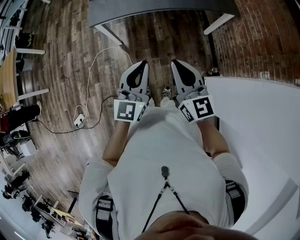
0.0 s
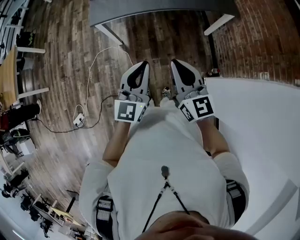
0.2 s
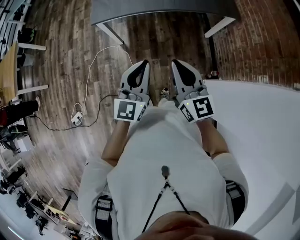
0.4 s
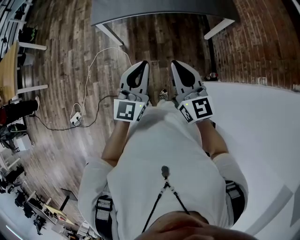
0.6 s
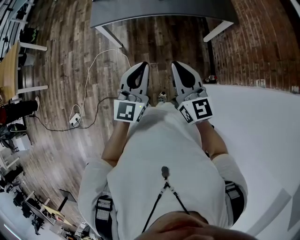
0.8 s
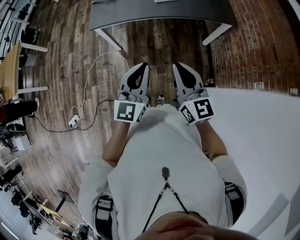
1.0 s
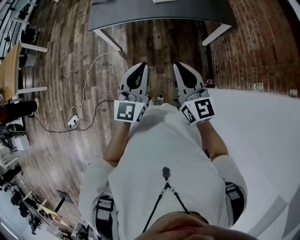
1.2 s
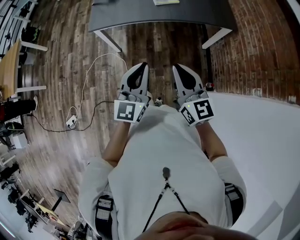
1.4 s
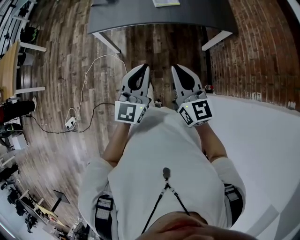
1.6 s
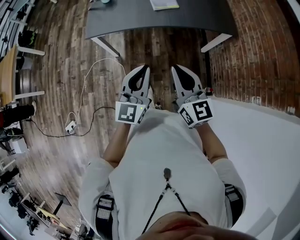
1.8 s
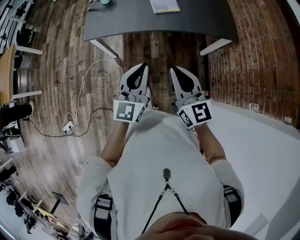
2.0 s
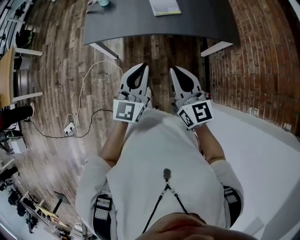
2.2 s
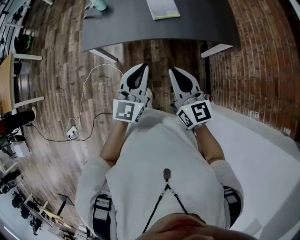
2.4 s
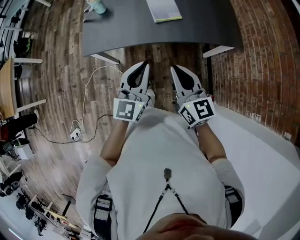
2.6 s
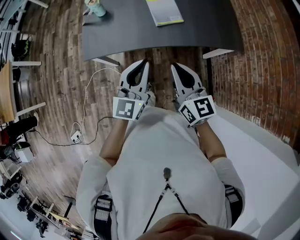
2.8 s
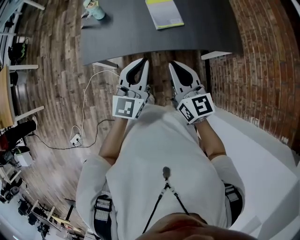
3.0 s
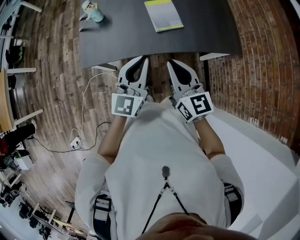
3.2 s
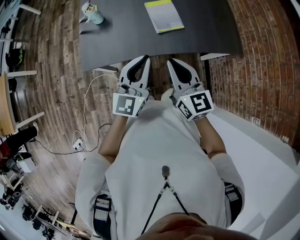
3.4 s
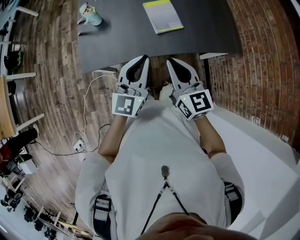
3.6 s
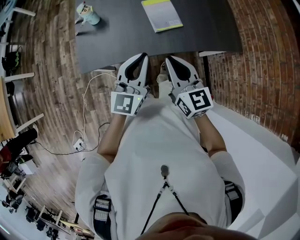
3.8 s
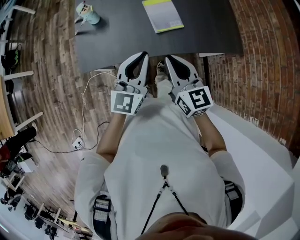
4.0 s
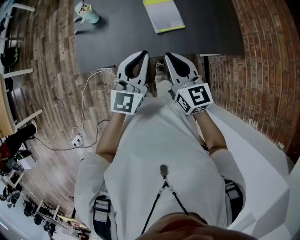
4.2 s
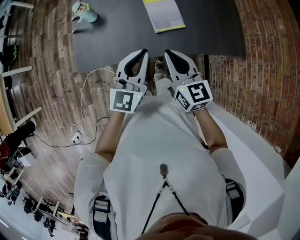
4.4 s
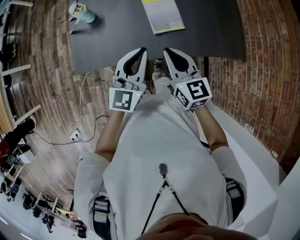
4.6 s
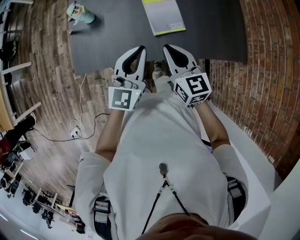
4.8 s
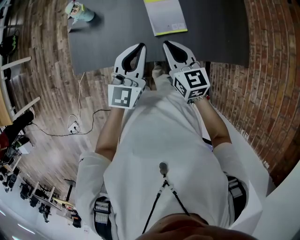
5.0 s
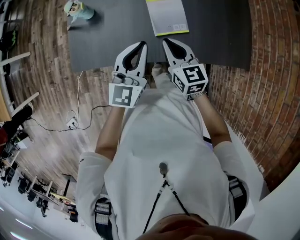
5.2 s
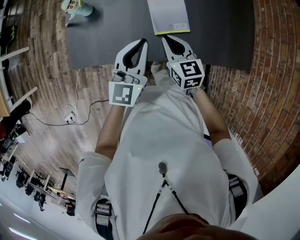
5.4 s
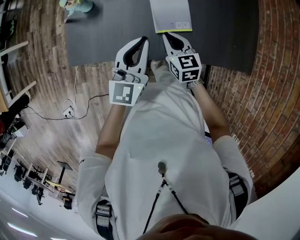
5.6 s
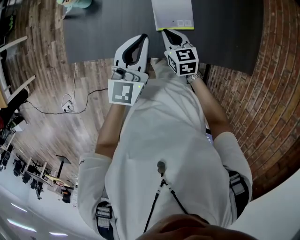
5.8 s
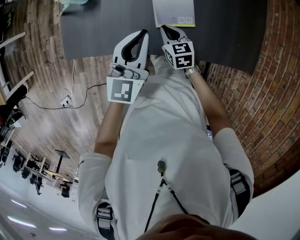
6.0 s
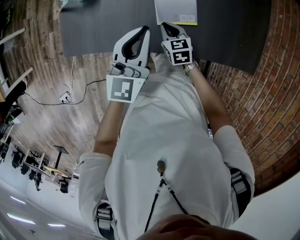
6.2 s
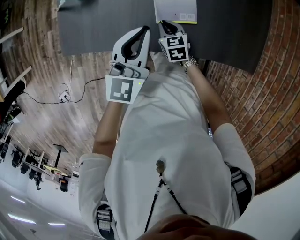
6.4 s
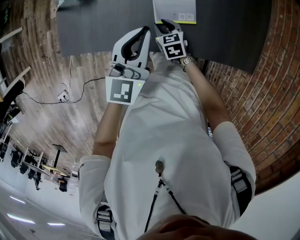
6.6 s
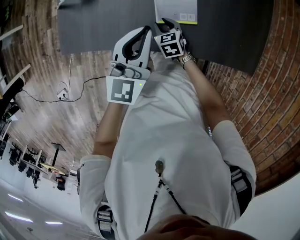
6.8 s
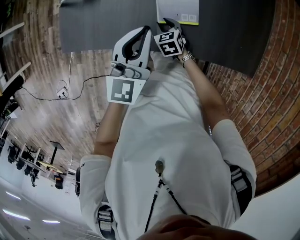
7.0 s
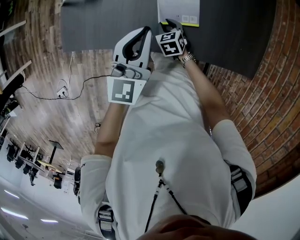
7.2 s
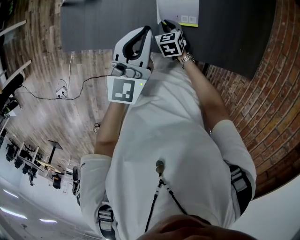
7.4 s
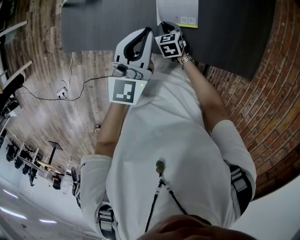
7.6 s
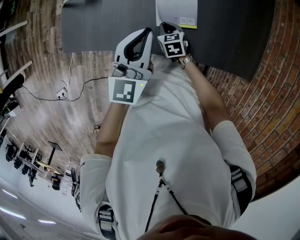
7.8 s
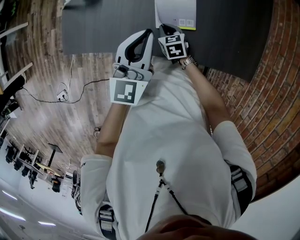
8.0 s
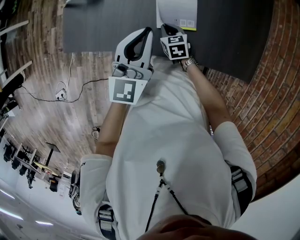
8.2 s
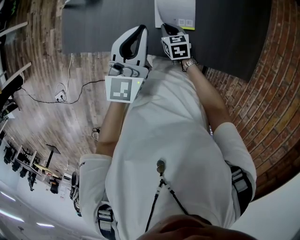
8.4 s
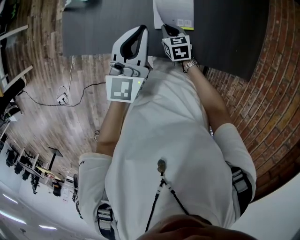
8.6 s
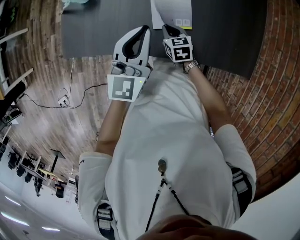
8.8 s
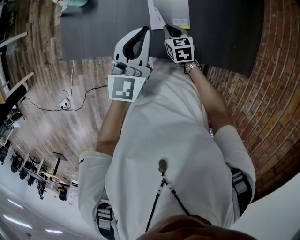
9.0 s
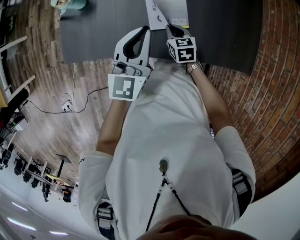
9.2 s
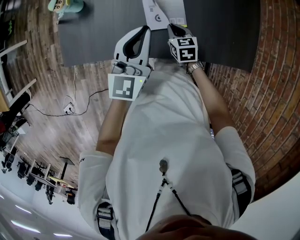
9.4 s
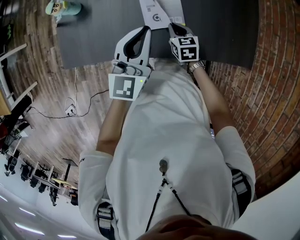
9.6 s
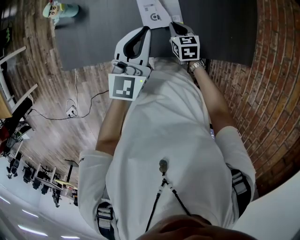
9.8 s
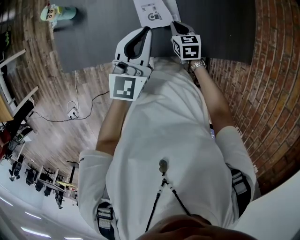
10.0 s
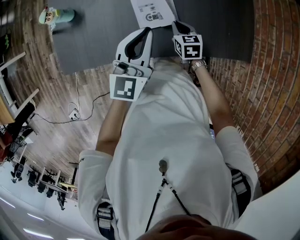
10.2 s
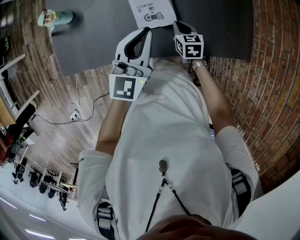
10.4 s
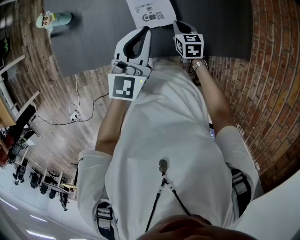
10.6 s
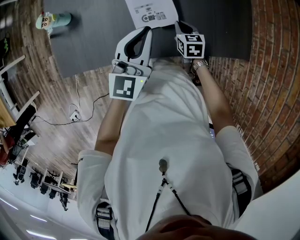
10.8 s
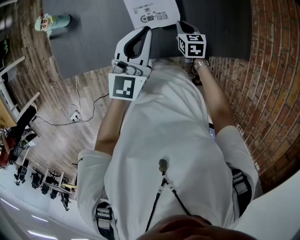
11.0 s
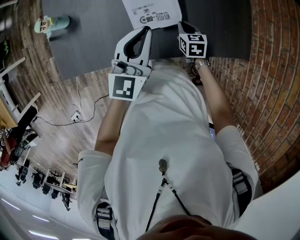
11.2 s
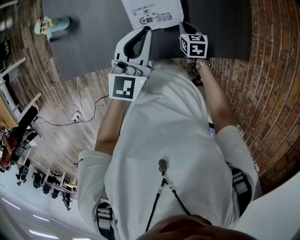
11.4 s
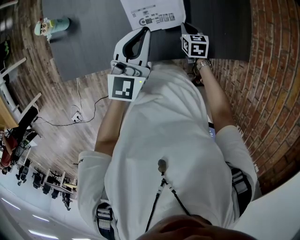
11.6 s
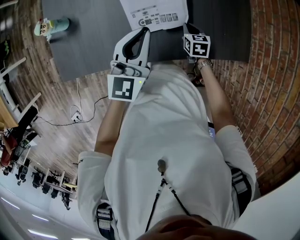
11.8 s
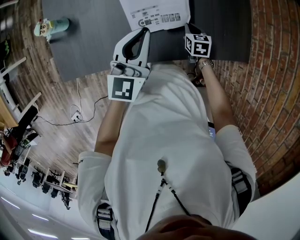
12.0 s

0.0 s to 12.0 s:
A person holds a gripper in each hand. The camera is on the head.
0.0 to 1.6 s: The right gripper heads to the right and forward, covering approximately 10 cm. Meanwhile the left gripper moves to the right, about 10 cm.
1.6 to 3.0 s: The two grippers go approximately 35 cm forward.
3.0 to 4.4 s: The two grippers go about 15 cm forward.
4.4 to 6.0 s: The right gripper heads downward and forward, covering some 35 cm, and turns by some 30 degrees; the left gripper is displaced forward and downward by roughly 20 cm.
6.0 to 7.6 s: The right gripper heads downward, covering some 10 cm, and opens and closes again.
7.6 to 9.0 s: The right gripper heads upward, covering approximately 5 cm.
9.0 to 10.4 s: The right gripper is displaced to the right by about 10 cm. Meanwhile the left gripper goes roughly 5 cm to the right.
10.4 to 12.0 s: The right gripper heads to the right, covering roughly 10 cm.

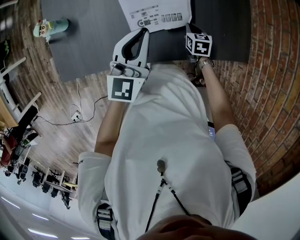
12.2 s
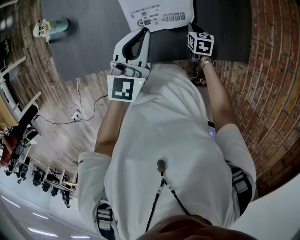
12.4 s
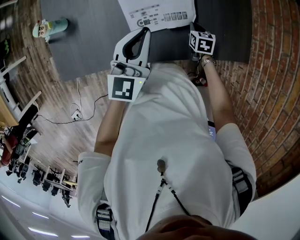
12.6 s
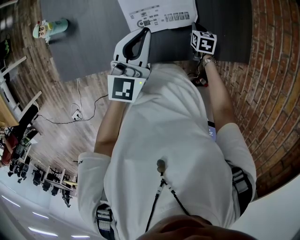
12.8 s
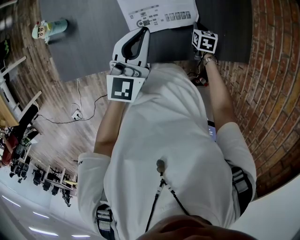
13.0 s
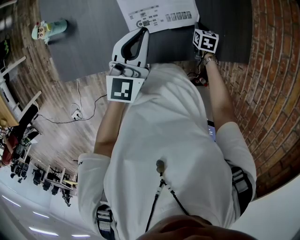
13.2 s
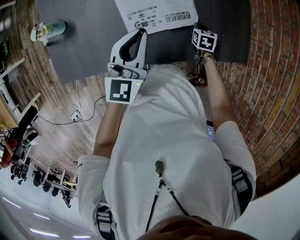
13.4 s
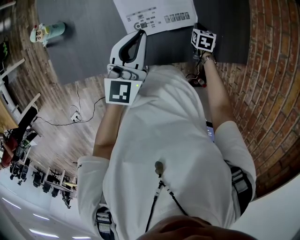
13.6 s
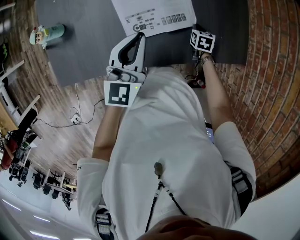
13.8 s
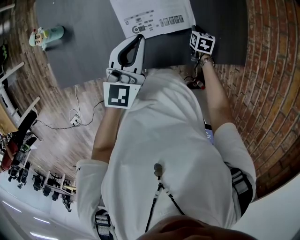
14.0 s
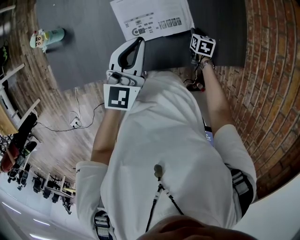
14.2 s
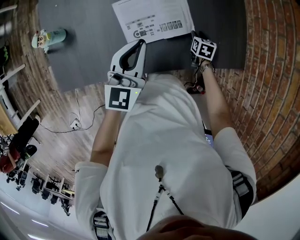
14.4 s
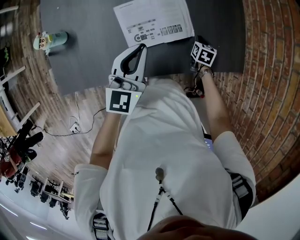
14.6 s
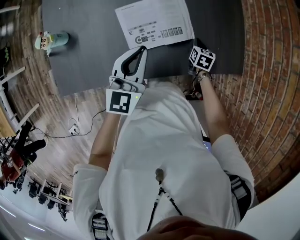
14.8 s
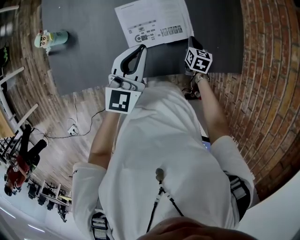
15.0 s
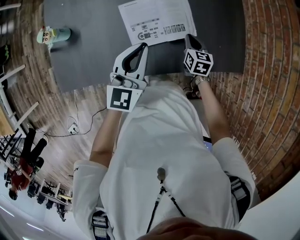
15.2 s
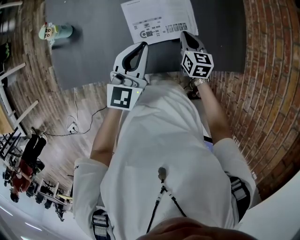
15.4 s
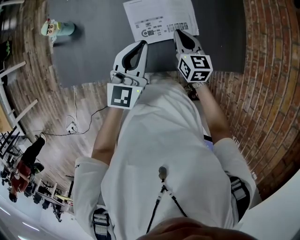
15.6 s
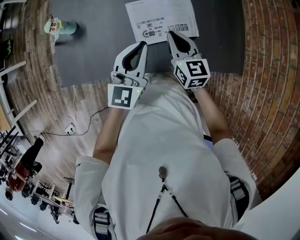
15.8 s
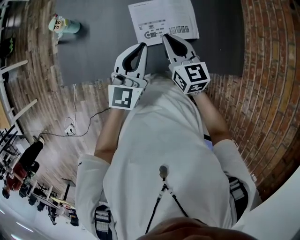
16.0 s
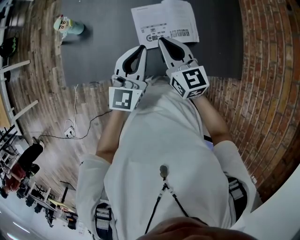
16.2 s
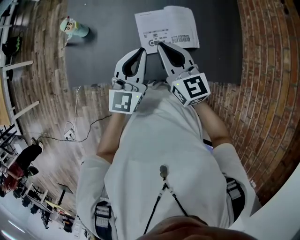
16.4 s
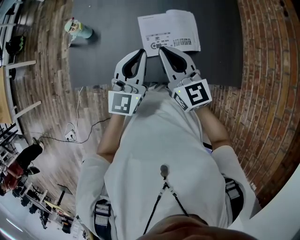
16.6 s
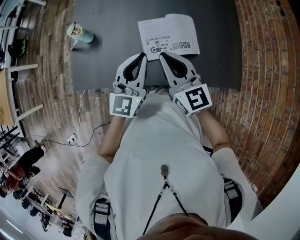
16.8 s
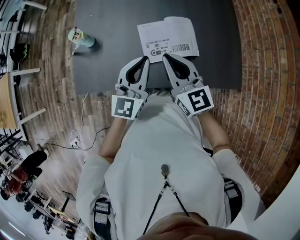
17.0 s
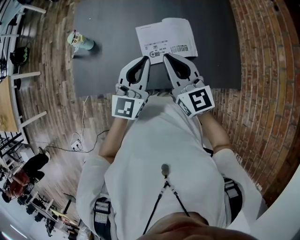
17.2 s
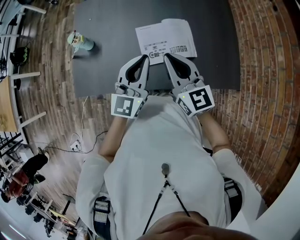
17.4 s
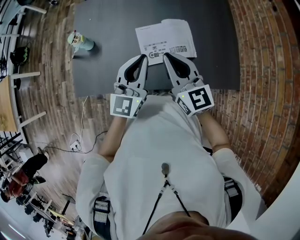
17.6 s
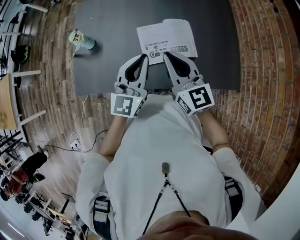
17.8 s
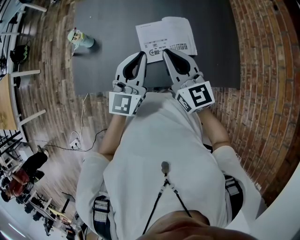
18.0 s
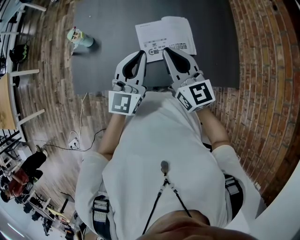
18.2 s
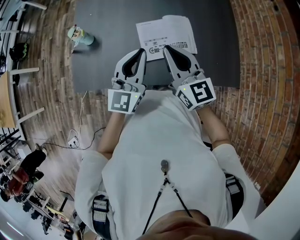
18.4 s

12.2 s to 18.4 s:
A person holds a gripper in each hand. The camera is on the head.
12.2 to 13.8 s: The right gripper moves to the right, roughly 5 cm.
13.8 to 15.4 s: The right gripper moves upward and to the left, about 20 cm, turns by about 30 degrees, and opens, then closes once more.
15.4 to 16.8 s: The right gripper moves upward and to the left, some 30 cm, and changes its angle by about 40 degrees. Meanwhile the left gripper moves upward, roughly 10 cm.
16.8 to 18.4 s: The grippers stay close to where they were, moving slightly.

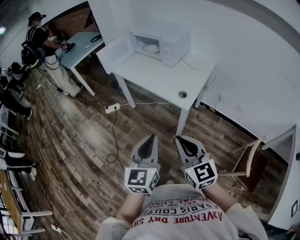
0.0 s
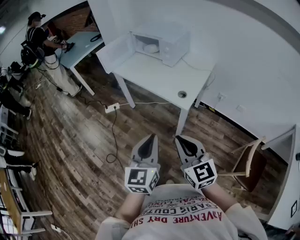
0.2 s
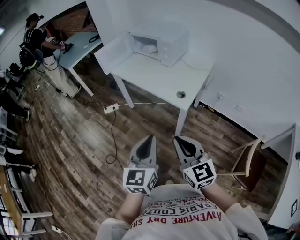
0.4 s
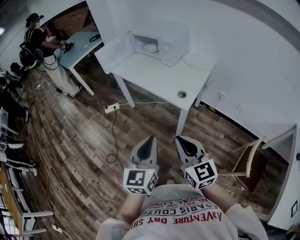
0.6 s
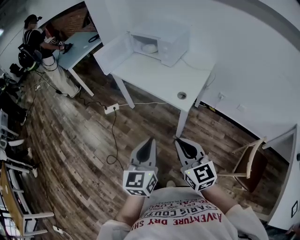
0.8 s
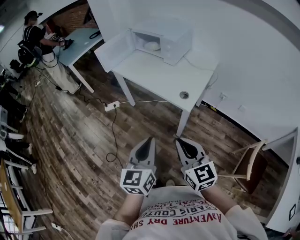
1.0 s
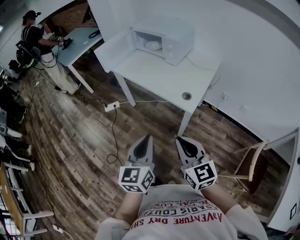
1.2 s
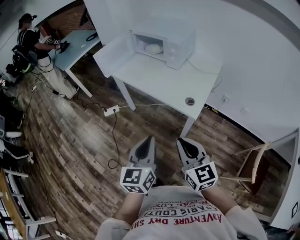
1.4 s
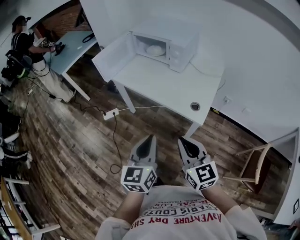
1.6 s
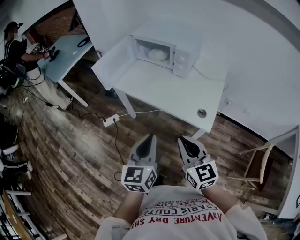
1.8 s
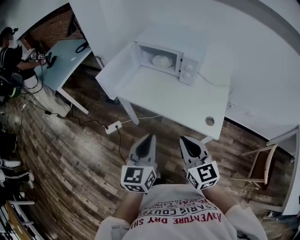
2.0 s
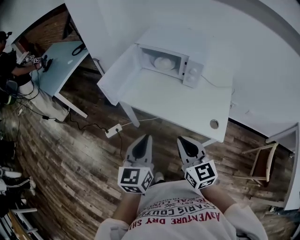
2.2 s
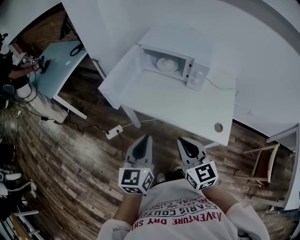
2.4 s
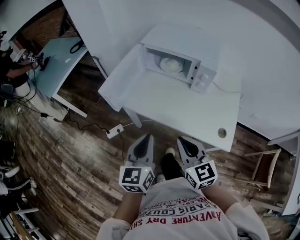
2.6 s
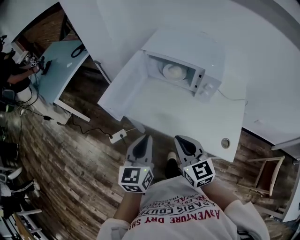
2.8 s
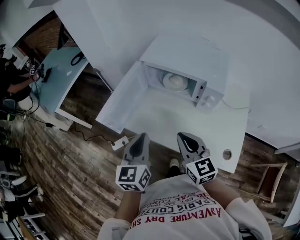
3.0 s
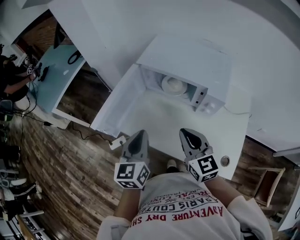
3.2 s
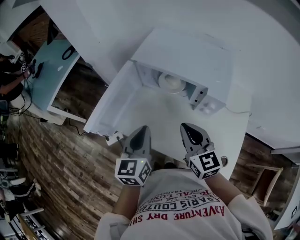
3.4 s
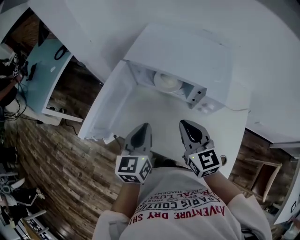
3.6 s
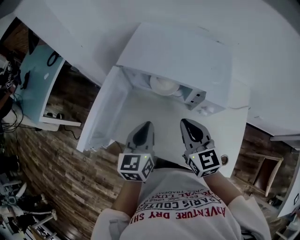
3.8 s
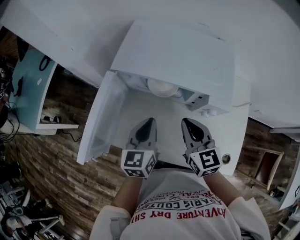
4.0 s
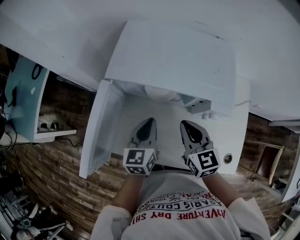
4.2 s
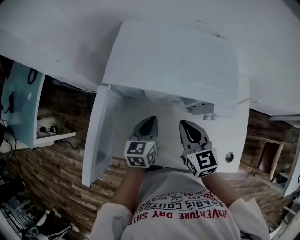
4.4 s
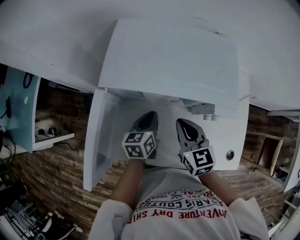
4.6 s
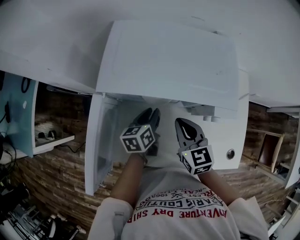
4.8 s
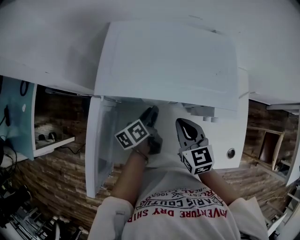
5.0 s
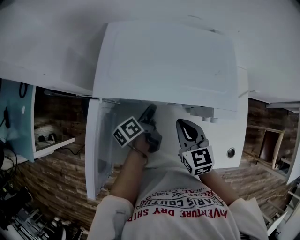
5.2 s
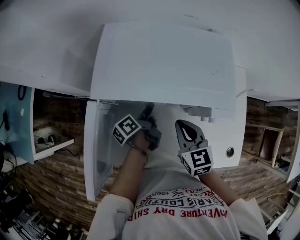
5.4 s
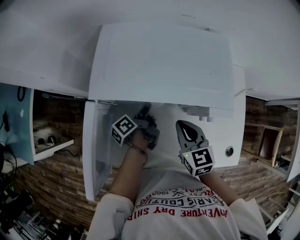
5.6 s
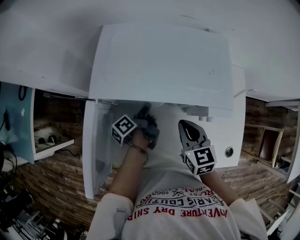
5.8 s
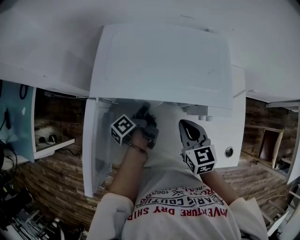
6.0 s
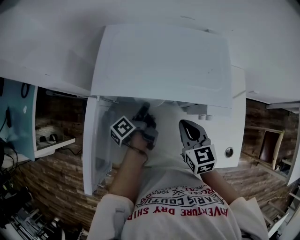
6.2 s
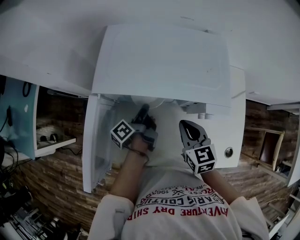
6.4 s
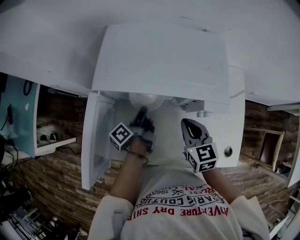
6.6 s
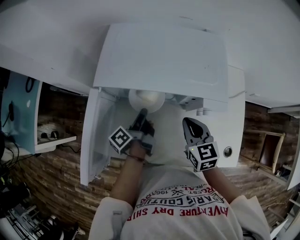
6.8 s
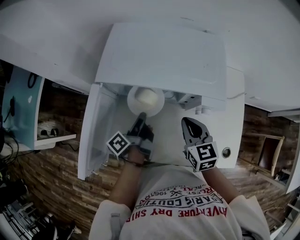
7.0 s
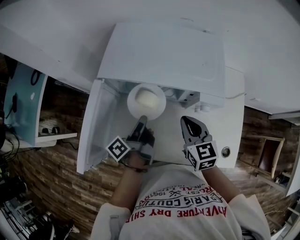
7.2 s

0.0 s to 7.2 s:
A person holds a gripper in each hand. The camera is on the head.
0.0 to 1.4 s: Both grippers move forward, approximately 10 cm.
1.4 to 2.8 s: The pair of grippers is taken forward and to the left, roughly 40 cm.
2.8 to 4.4 s: The left gripper travels forward and downward by some 35 cm, and turns by roughly 30 degrees. Meanwhile the right gripper moves forward, approximately 30 cm, and turns by approximately 20 degrees.
4.4 to 5.8 s: The left gripper heads forward and downward, covering about 10 cm, and rolls counterclockwise, seen from behind, by approximately 70 degrees.
5.8 to 7.2 s: The left gripper goes about 15 cm backward and upward.
